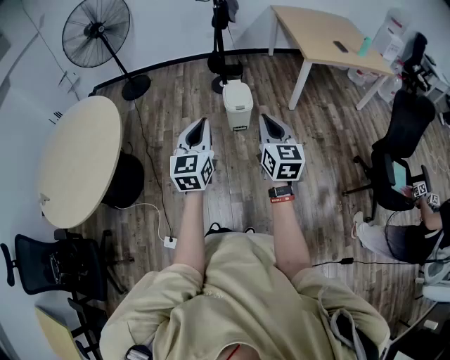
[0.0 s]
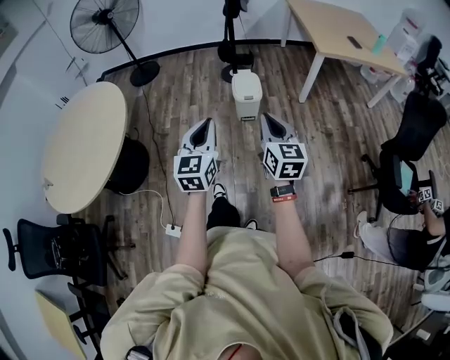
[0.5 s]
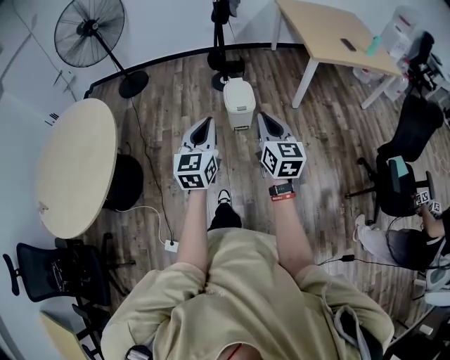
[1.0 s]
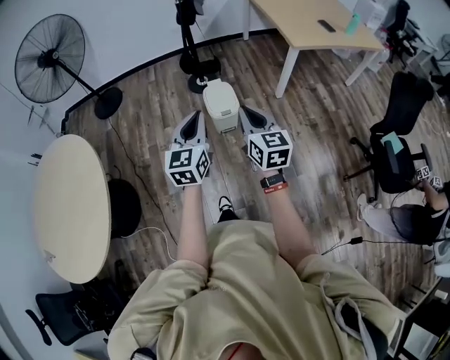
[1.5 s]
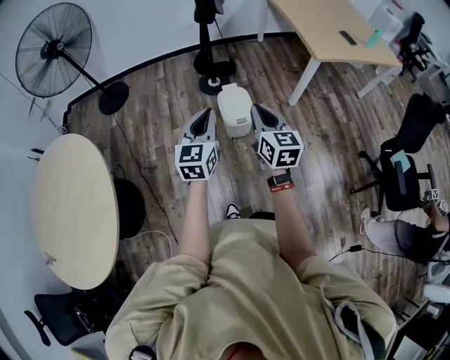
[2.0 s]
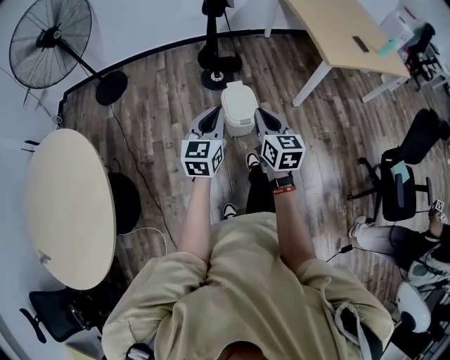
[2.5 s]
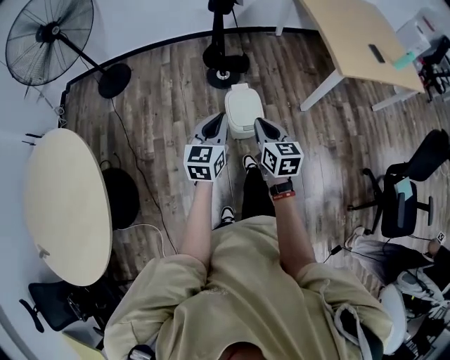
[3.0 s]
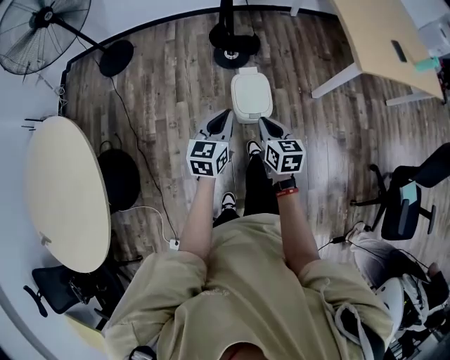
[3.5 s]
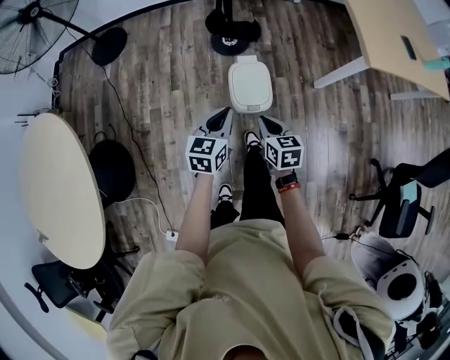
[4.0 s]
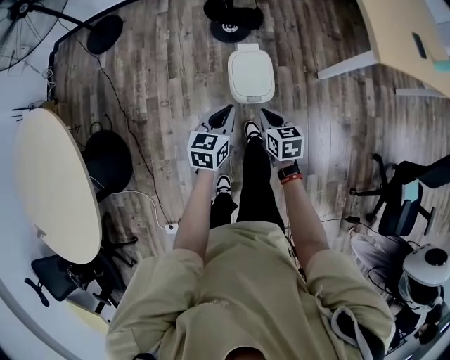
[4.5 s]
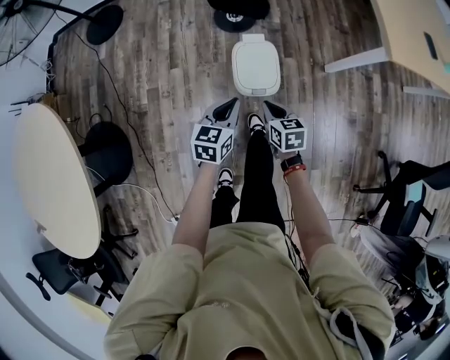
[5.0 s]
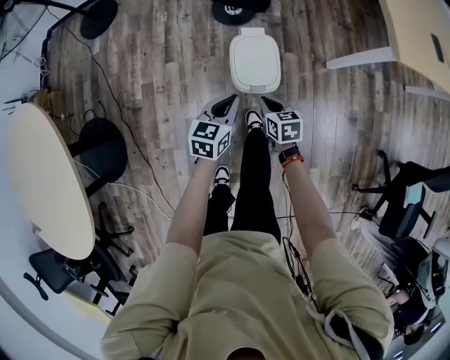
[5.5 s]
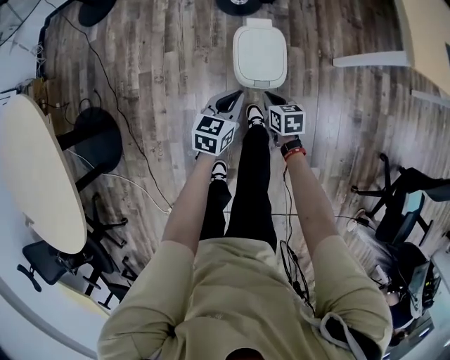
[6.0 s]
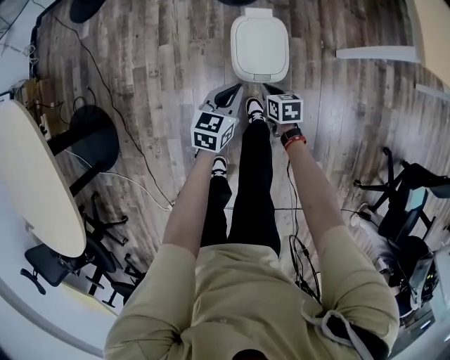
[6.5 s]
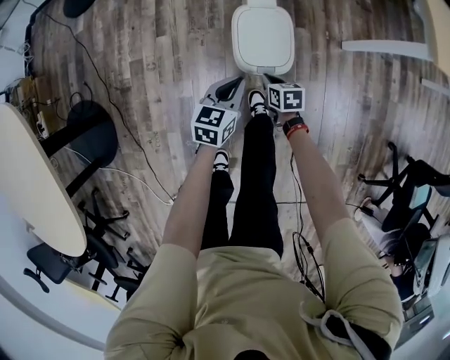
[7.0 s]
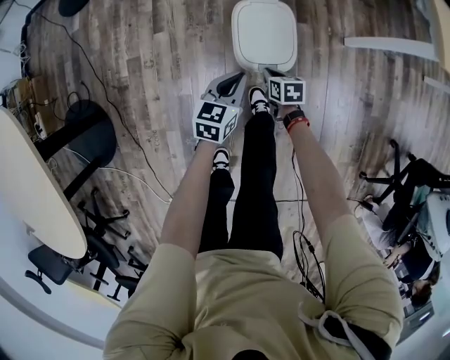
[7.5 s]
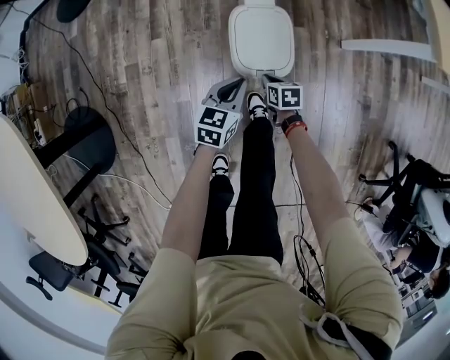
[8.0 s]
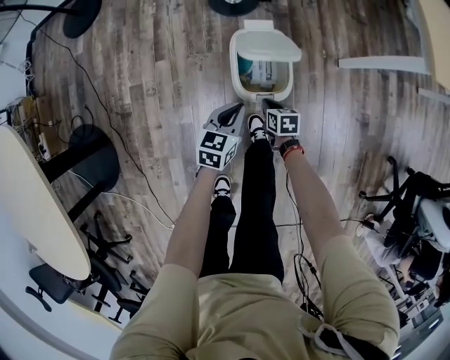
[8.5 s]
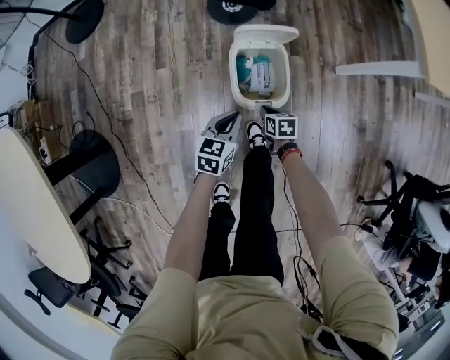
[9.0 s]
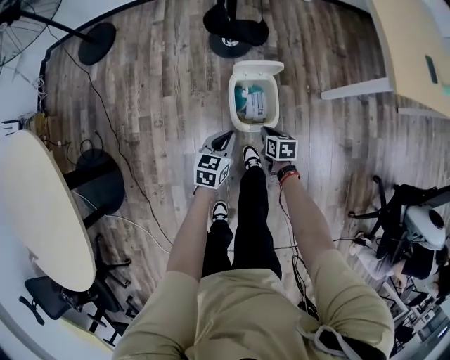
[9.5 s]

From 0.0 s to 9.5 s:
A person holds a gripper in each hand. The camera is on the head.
From 0.0 s to 2.0 s: The two grippers go roughly 40 cm forward.
From 2.0 s to 4.0 s: Both grippers travel together downward and forward, approximately 35 cm. The left gripper turns by about 20 degrees. Meanwhile the right gripper turns by roughly 30 degrees.
From 4.0 s to 5.5 s: The grippers both shift downward by approximately 15 cm.
From 5.5 s to 7.5 s: Both grippers travel together downward, some 20 cm.
From 7.5 s to 9.5 s: Both grippers move upward, roughly 10 cm.

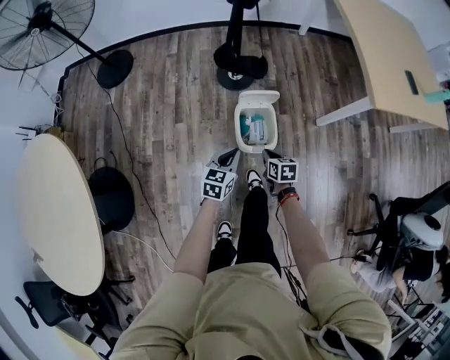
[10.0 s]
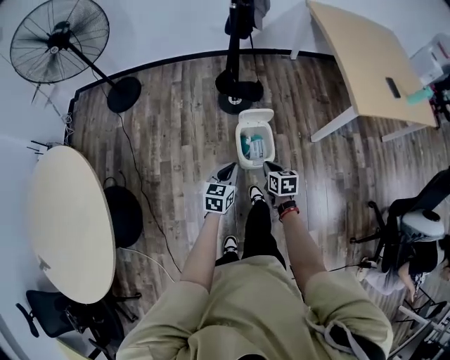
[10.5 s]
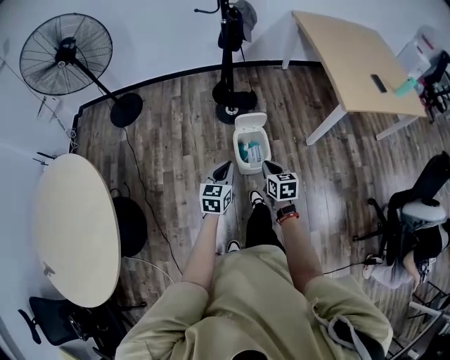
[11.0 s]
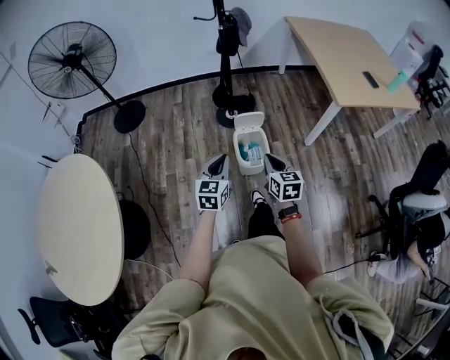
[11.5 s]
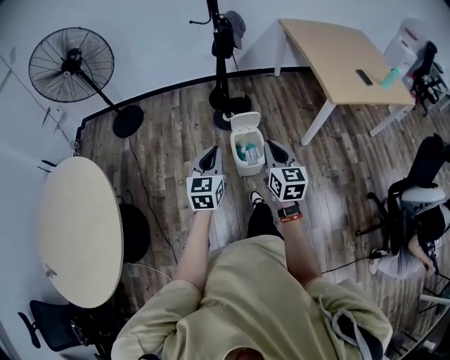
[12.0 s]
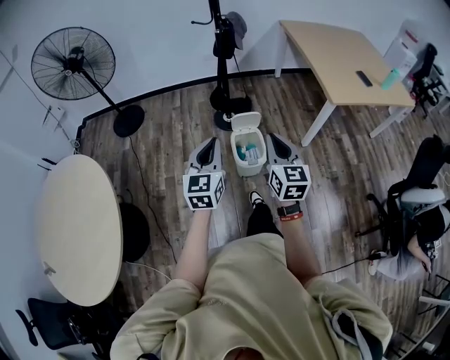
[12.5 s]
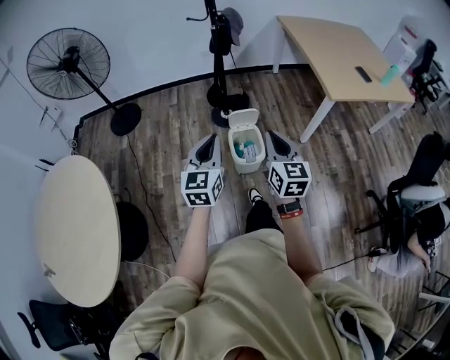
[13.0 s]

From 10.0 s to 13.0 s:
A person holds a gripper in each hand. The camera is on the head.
From 10.0 s to 11.5 s: The two grippers go about 35 cm upward and backward. The right gripper turns by roughly 30 degrees.
From 11.5 s to 13.0 s: The two grippers go some 15 cm upward.

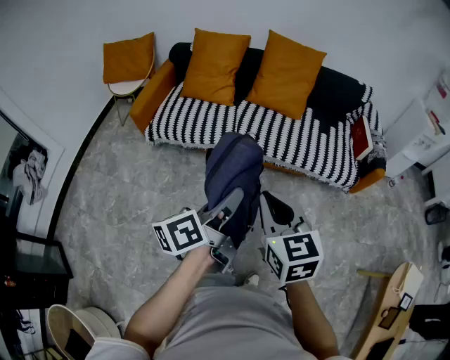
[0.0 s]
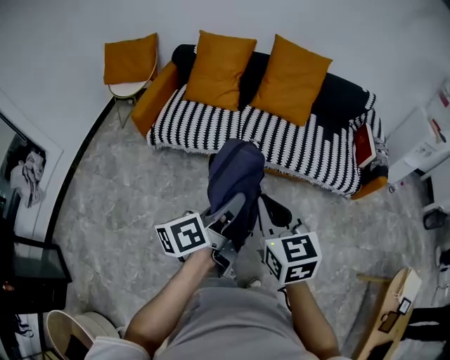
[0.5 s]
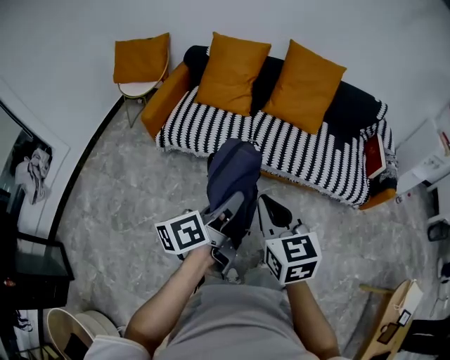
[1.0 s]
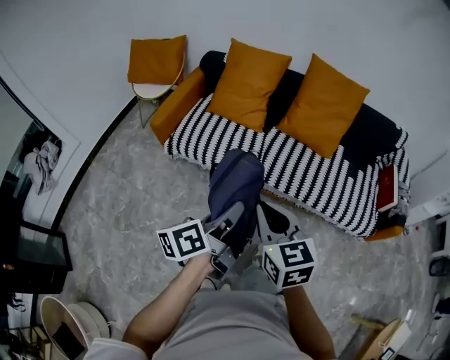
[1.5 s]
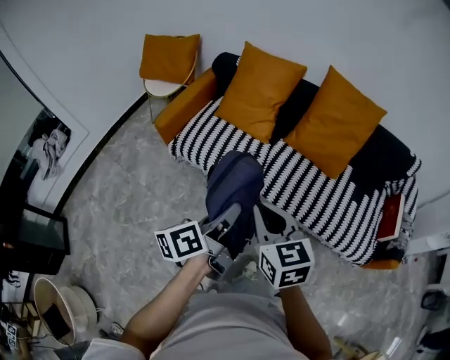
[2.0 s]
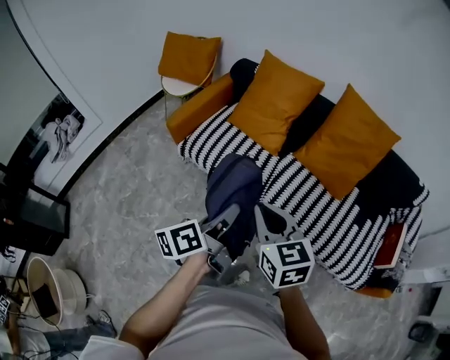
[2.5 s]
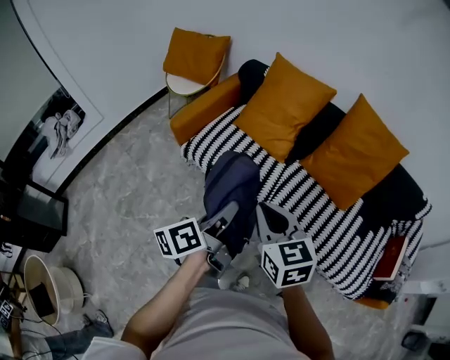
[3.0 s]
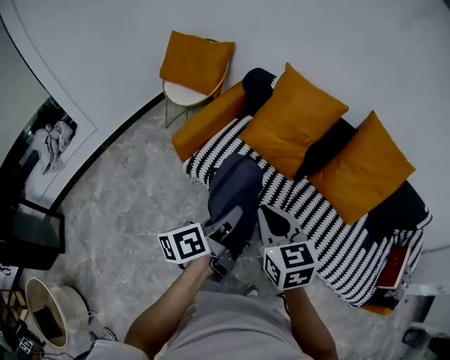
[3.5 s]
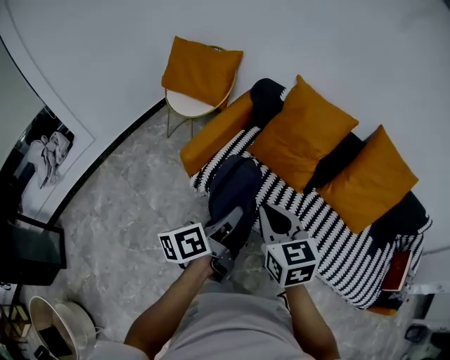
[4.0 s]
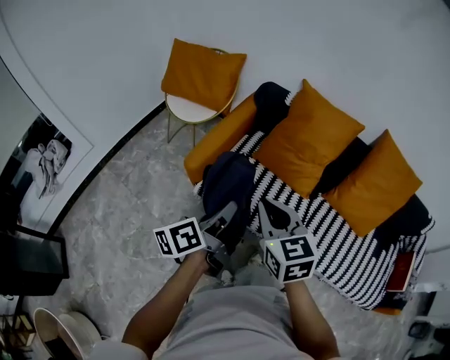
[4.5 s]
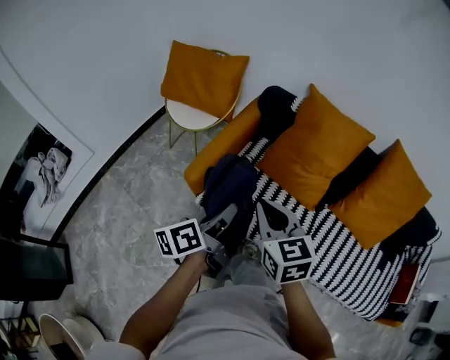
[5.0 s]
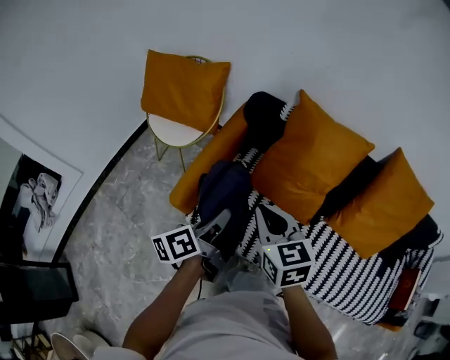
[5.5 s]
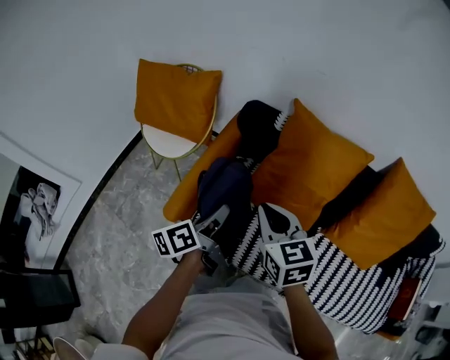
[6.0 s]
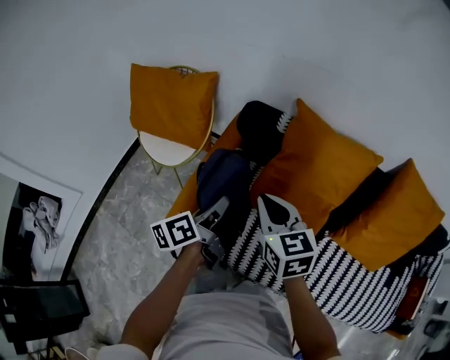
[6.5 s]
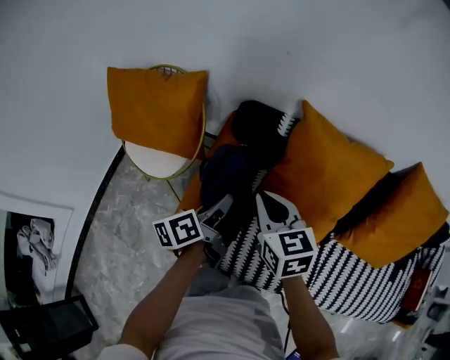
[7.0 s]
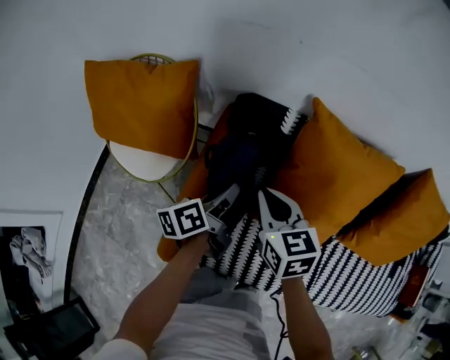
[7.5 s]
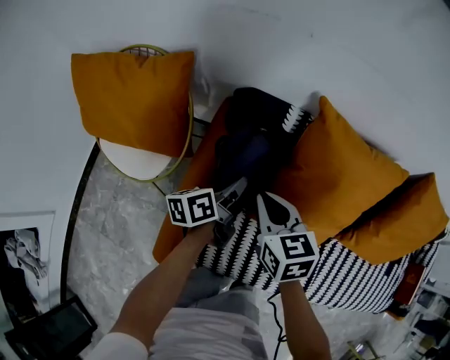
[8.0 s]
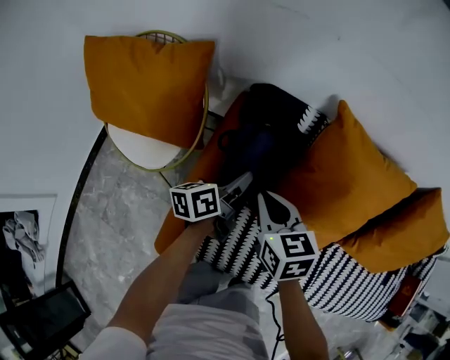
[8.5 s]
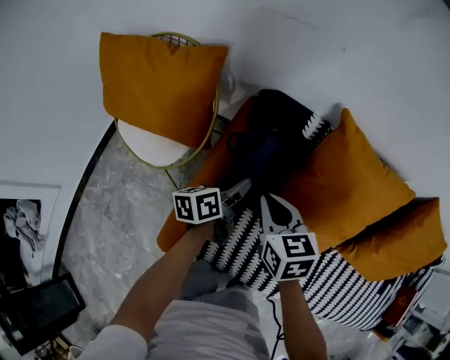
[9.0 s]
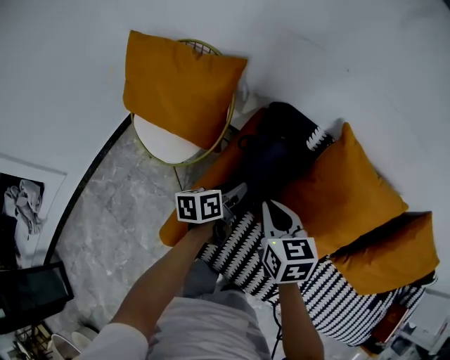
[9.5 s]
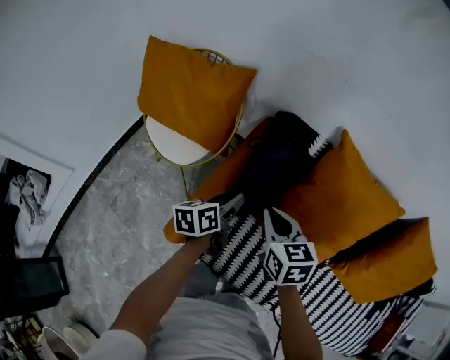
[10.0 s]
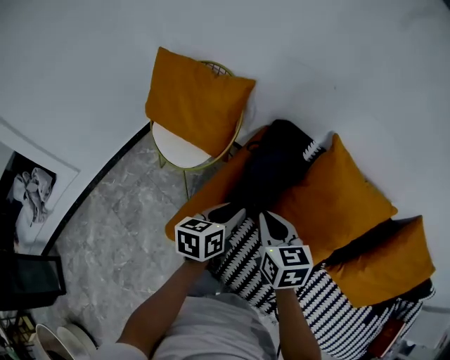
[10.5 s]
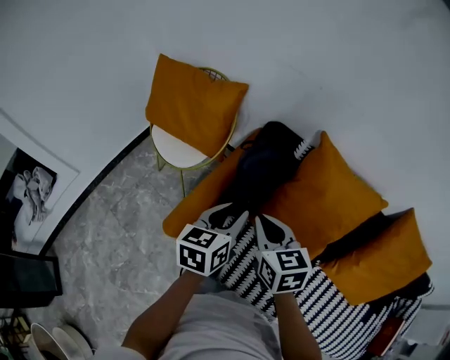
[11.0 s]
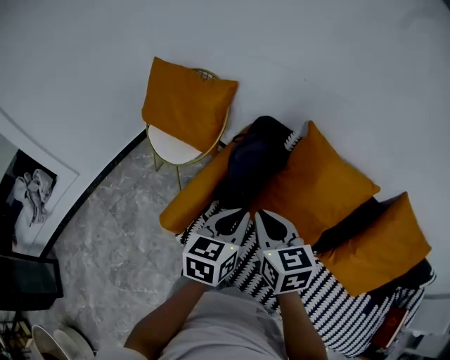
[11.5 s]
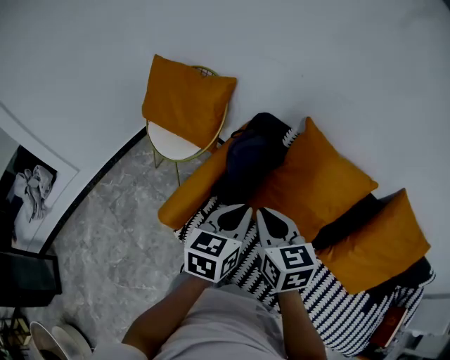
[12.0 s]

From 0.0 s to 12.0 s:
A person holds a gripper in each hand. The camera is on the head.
From 0.0 s to 2.0 s: The two grippers go about 25 cm forward.
From 2.0 s to 4.0 s: Both grippers move forward and to the left, approximately 30 cm.
From 4.0 s to 6.0 s: The grippers both shift forward by some 30 cm.
From 6.0 s to 8.0 s: The grippers both shift forward and downward by approximately 30 cm.
From 8.0 s to 10.0 s: The left gripper is displaced backward and to the left by roughly 10 cm, and opens its fingers; the right gripper moves backward, some 5 cm.
From 10.0 s to 12.0 s: The left gripper moves upward, backward and to the right, some 25 cm, changes its angle by some 30 degrees, and closes; the right gripper heads backward, upward and to the right, covering about 20 cm.

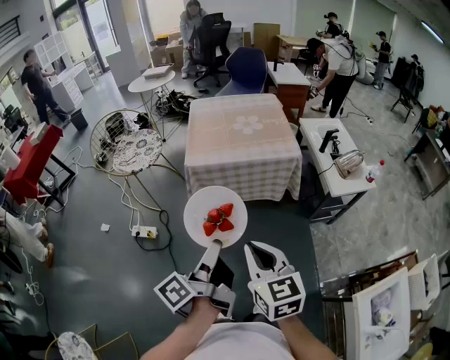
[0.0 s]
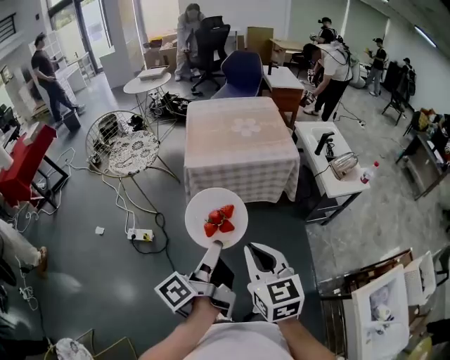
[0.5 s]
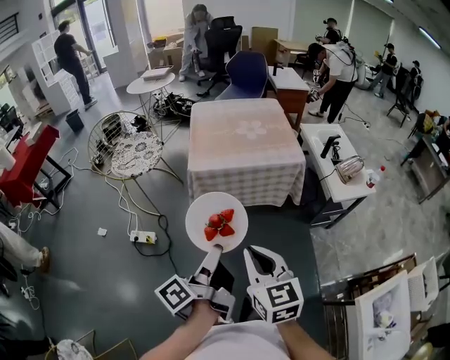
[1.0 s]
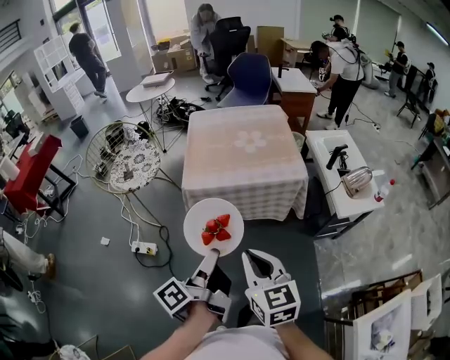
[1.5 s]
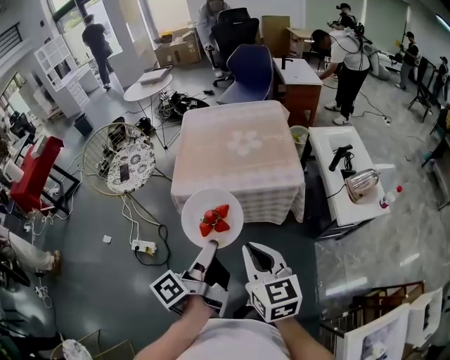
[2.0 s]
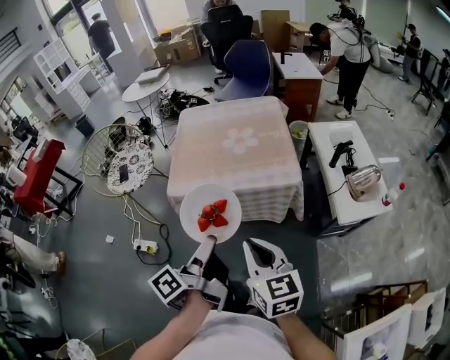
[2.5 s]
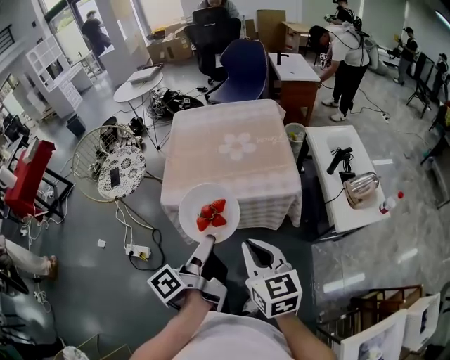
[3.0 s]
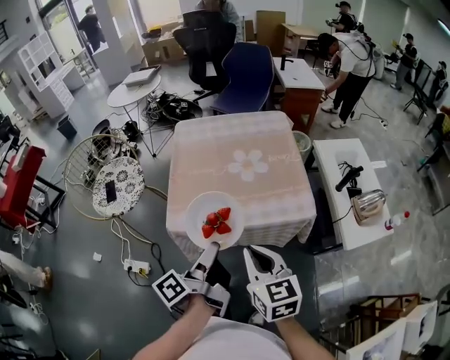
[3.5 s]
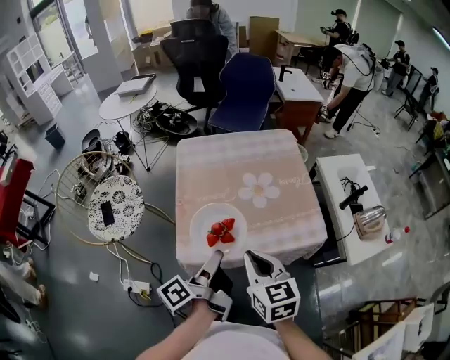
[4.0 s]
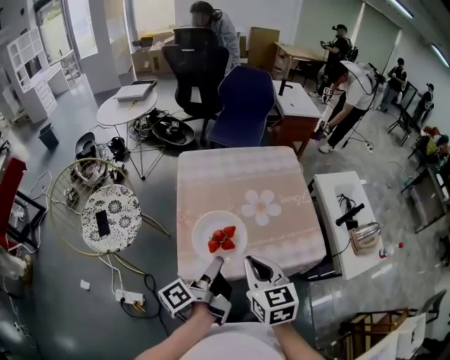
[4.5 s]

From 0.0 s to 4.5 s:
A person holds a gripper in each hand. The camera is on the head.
From 0.0 s to 2.0 s: The right gripper ends up about 20 cm from where it was.
From 2.0 s to 4.5 s: The right gripper ends up roughly 35 cm from where it was.
